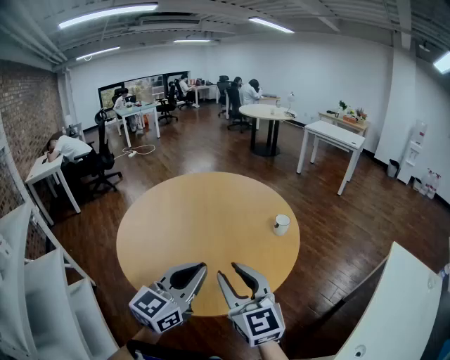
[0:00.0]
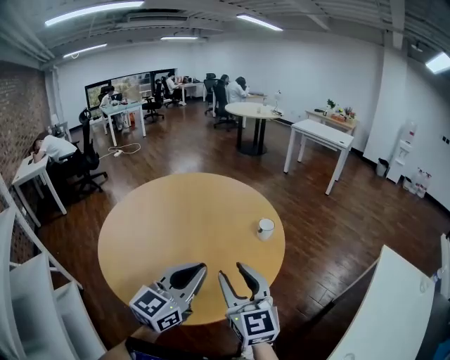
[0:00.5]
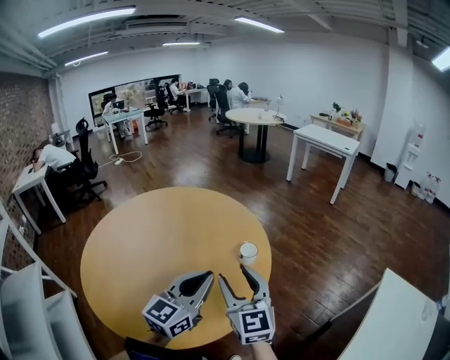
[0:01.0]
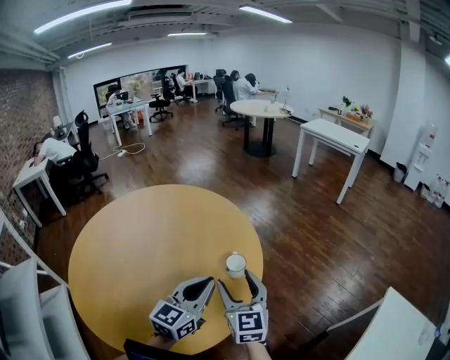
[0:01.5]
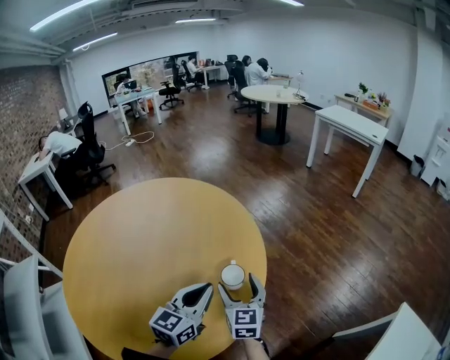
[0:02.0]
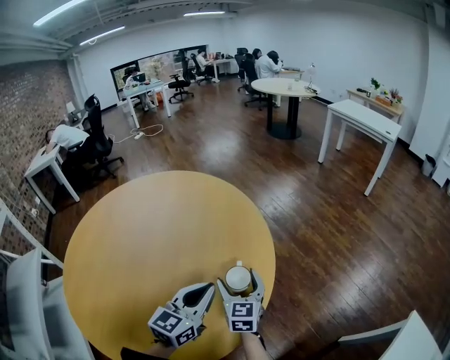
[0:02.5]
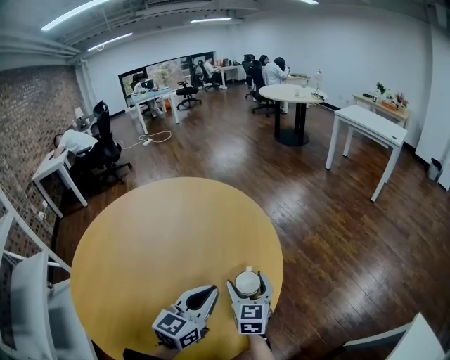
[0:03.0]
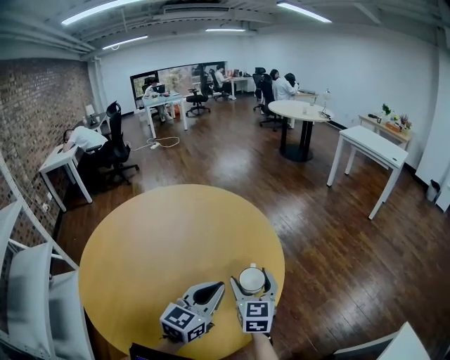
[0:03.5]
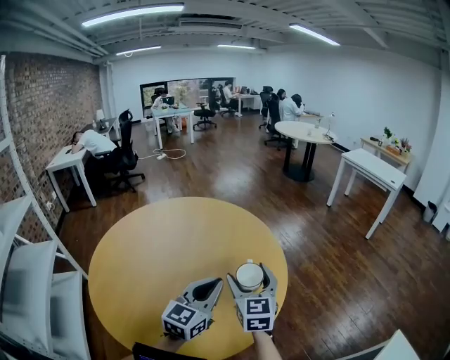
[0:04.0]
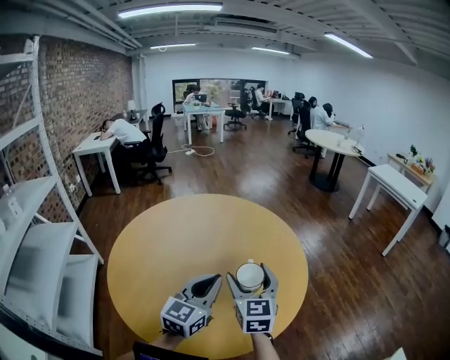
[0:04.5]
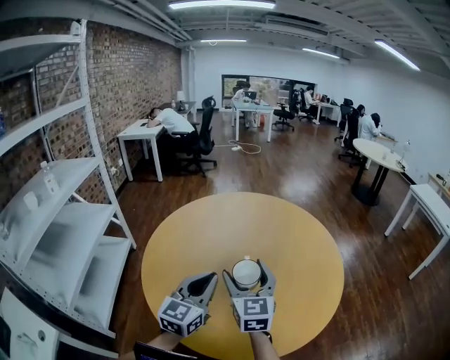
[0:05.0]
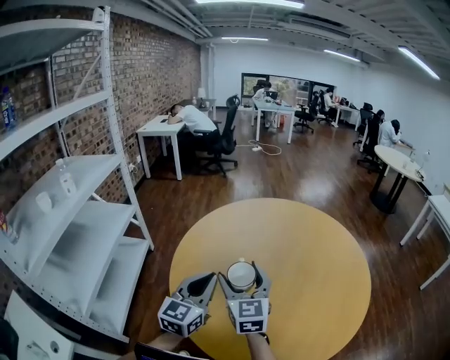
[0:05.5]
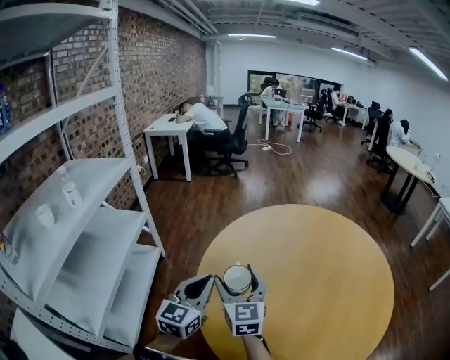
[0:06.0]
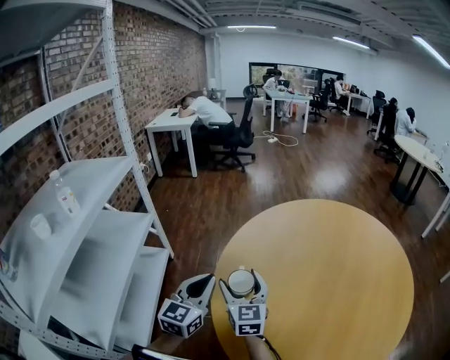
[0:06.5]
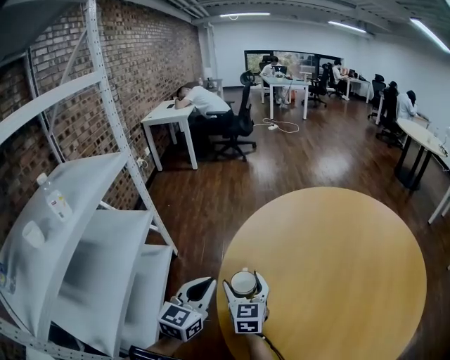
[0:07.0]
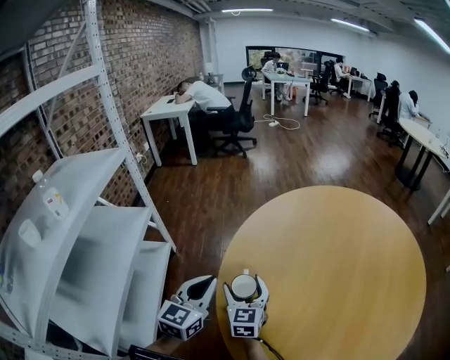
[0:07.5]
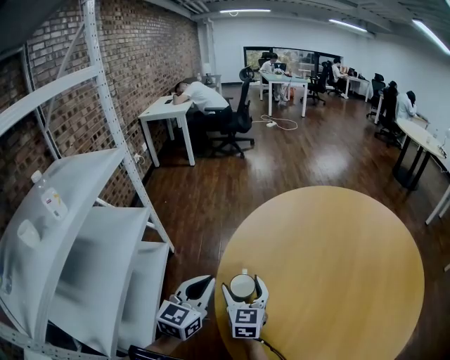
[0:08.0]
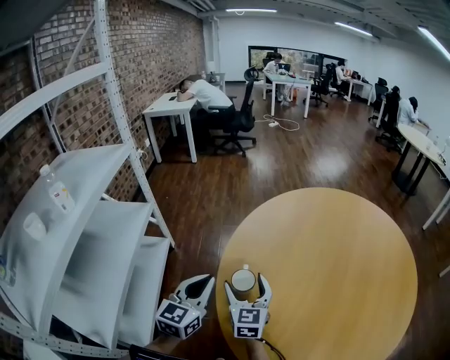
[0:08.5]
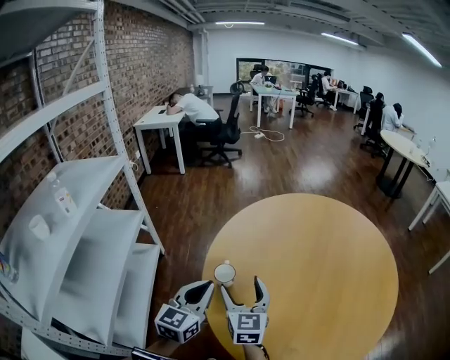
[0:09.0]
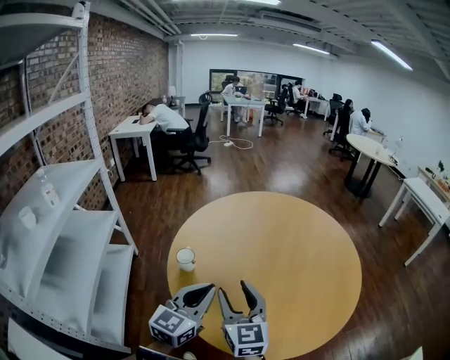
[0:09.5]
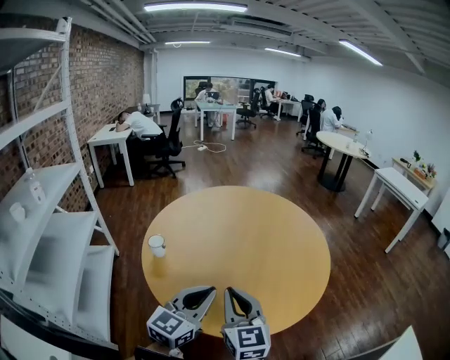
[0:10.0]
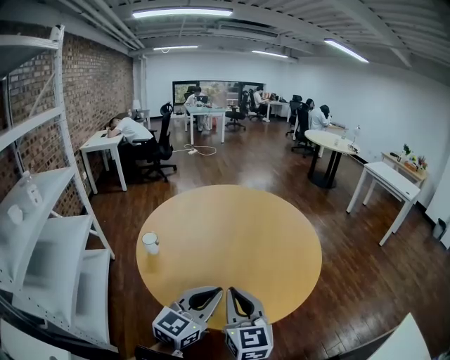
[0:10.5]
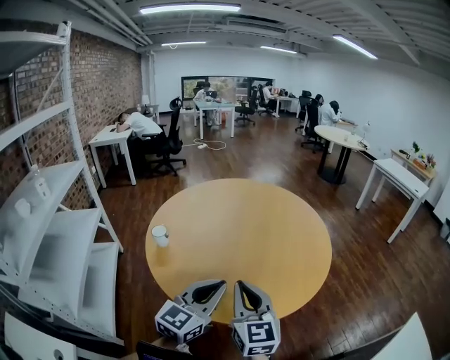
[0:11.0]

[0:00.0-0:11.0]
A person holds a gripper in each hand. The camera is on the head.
0:00.0 to 0:02.0: The right gripper shifts about 50 cm forward, downward and to the right, and opens up. Meanwhile the left gripper shifts approximately 40 cm forward, to the right and downward.
0:02.0 to 0:03.5: The right gripper is displaced upward by some 5 cm.
0:03.5 to 0:05.5: Both grippers are carried roughly 40 cm. The left gripper turns by about 40 degrees. Meanwhile the right gripper swivels some 40 degrees.
0:05.5 to 0:07.5: The left gripper travels to the left, forward and downward by approximately 30 cm. The right gripper shifts approximately 35 cm to the left, downward and forward.
0:07.5 to 0:09.0: The right gripper heads upward, backward and to the right, covering approximately 20 cm, while the left gripper goes some 10 cm backward, upward and to the right.
0:09.0 to 0:11.0: Both grippers move to the right and backward, about 40 cm. The right gripper closes its fingers, while the left gripper swivels roughly 30 degrees.

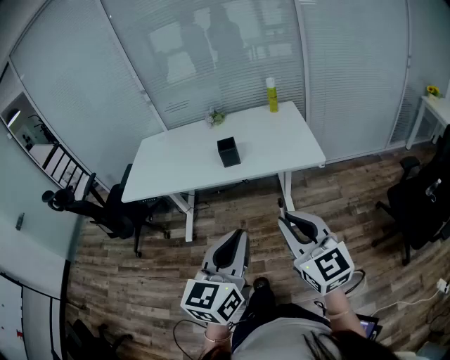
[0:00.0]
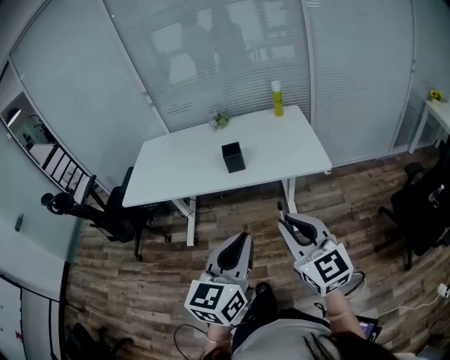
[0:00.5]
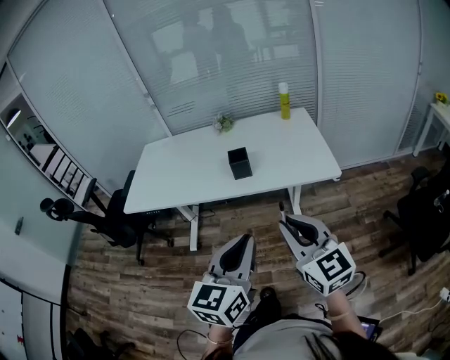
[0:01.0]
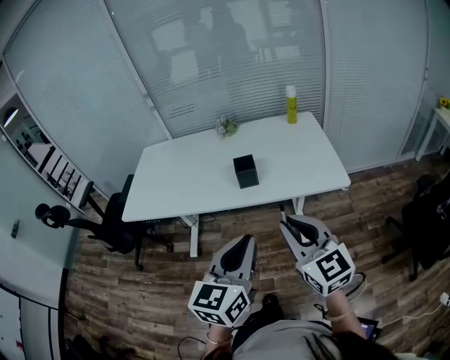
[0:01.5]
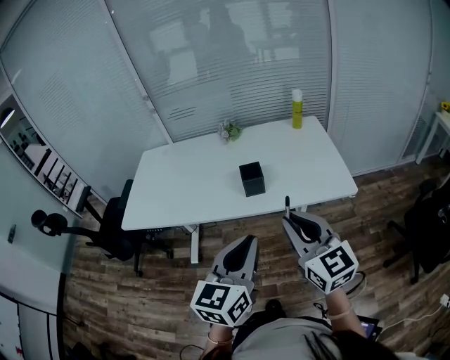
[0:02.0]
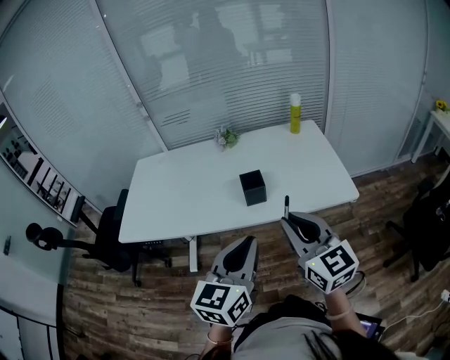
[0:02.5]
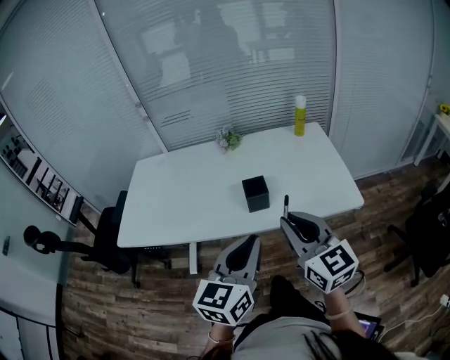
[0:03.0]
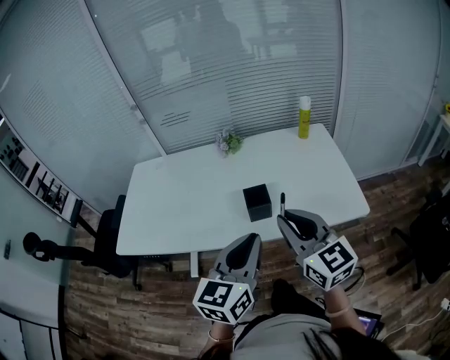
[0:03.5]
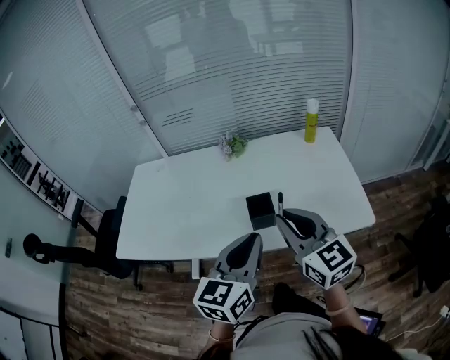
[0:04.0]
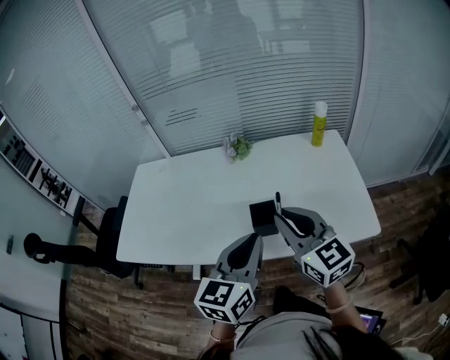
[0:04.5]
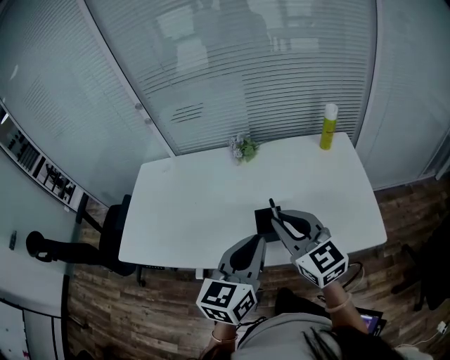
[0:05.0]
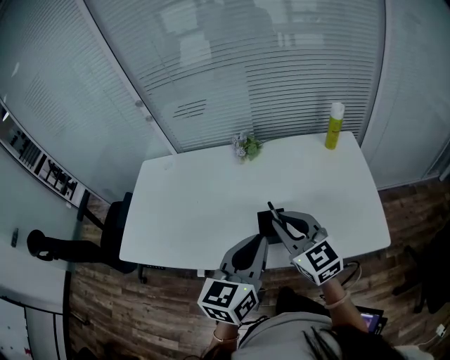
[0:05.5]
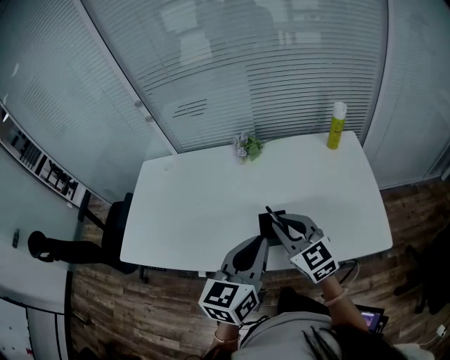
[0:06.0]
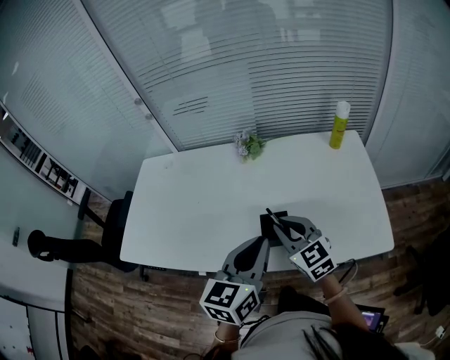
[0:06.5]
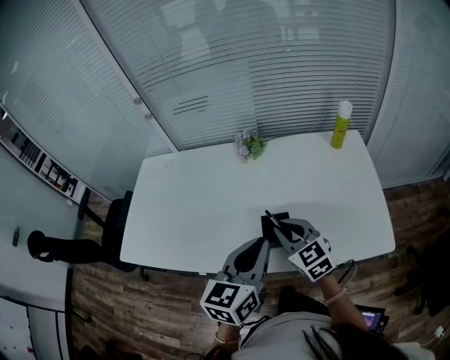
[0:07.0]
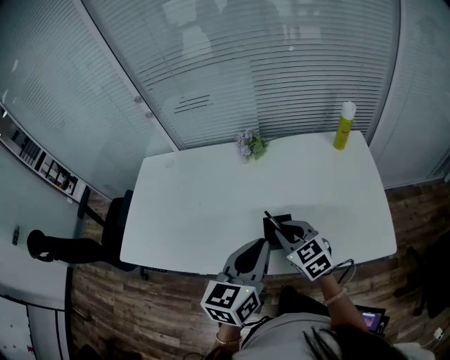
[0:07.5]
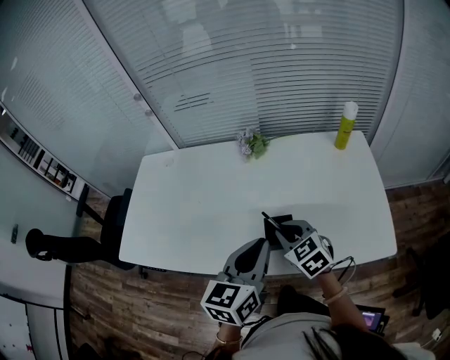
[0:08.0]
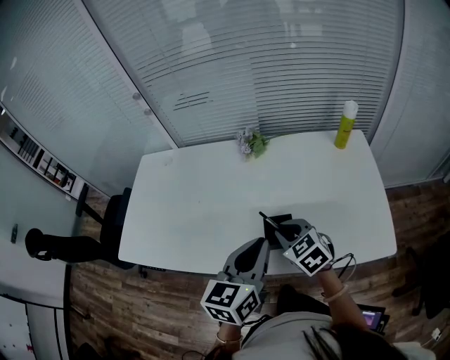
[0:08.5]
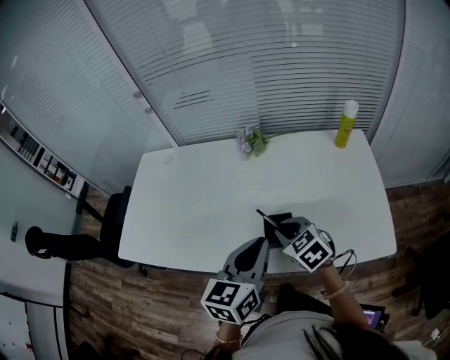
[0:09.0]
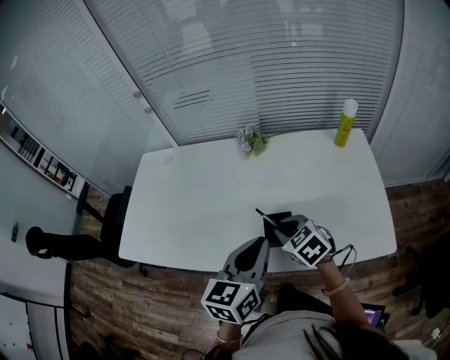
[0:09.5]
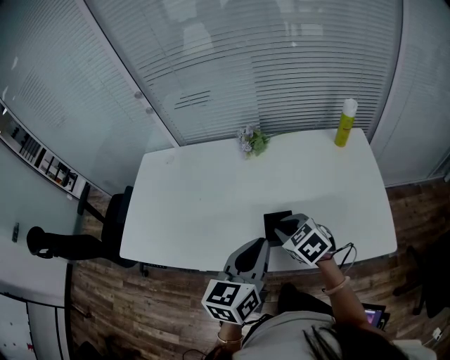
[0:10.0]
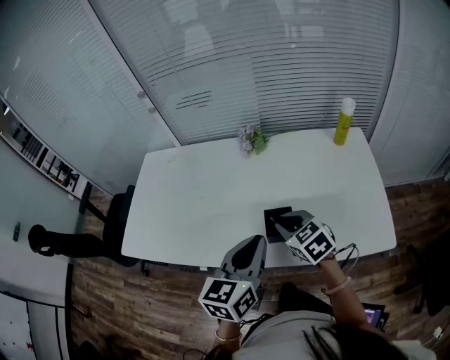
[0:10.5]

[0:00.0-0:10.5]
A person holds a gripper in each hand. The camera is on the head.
0:00.0 to 0:02.0: Both grippers move forward, some 20 cm.
0:02.0 to 0:04.0: Both grippers move forward, approximately 20 cm.
0:04.0 to 0:06.5: The right gripper goes roughly 20 cm downward and forward, while the left gripper shifts roughly 10 cm forward.
0:06.5 to 0:08.5: The right gripper moves downward, about 5 cm, and turns by roughly 20 degrees.
0:08.5 to 0:10.5: The grippers move only a little.

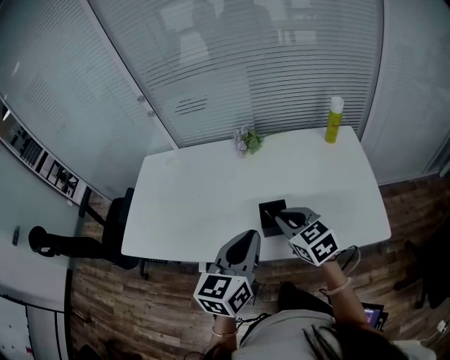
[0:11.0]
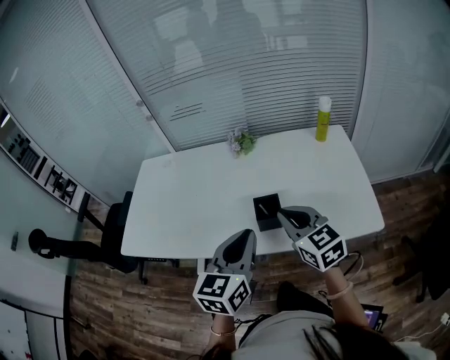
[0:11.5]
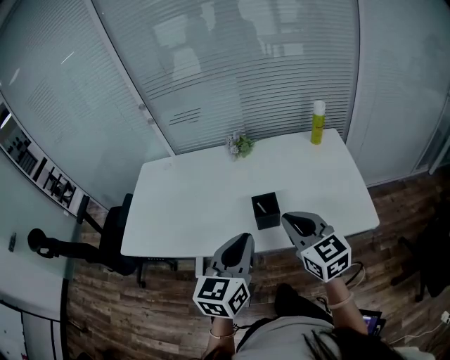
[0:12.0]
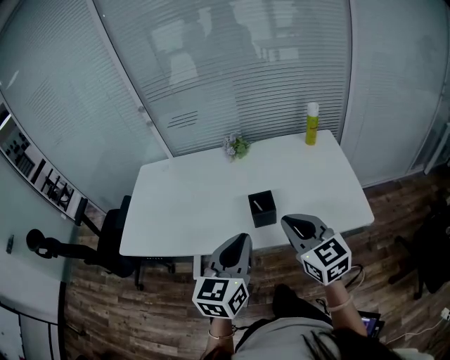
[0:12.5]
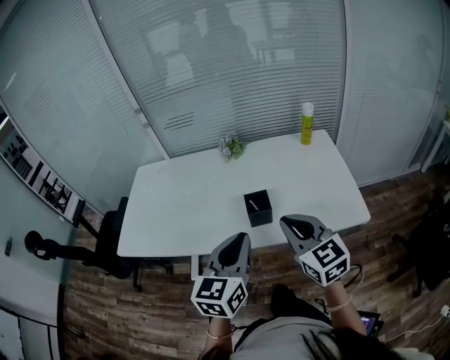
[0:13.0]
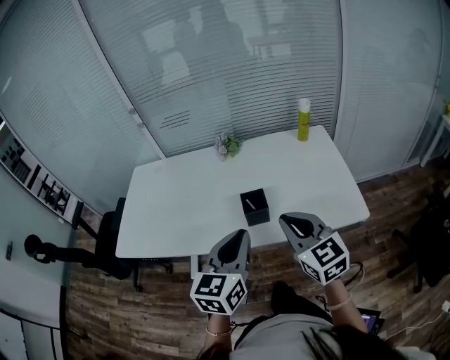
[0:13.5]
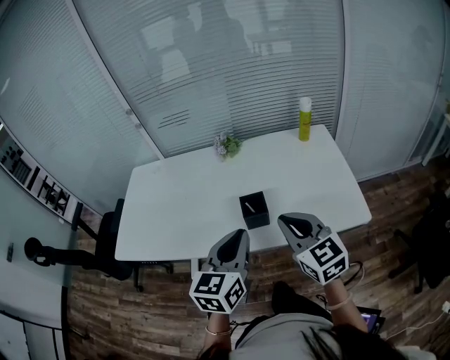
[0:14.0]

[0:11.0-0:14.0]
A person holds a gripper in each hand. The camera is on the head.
0:11.0 to 0:12.5: The right gripper moves backward and upward, some 15 cm. The left gripper moves backward, some 10 cm.
0:12.5 to 0:14.0: The grippers make only small movements.

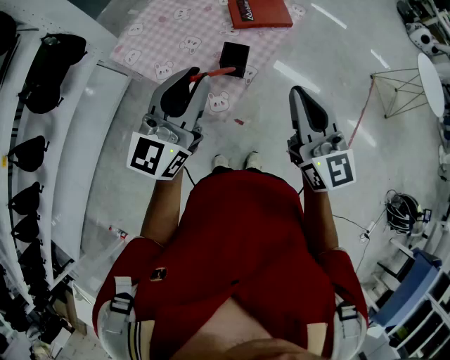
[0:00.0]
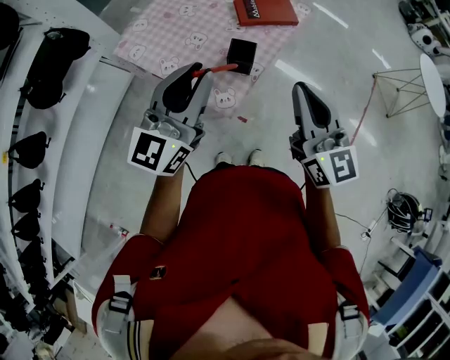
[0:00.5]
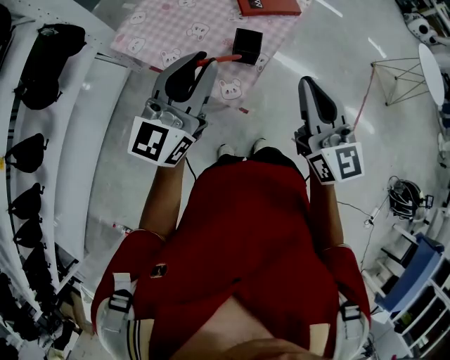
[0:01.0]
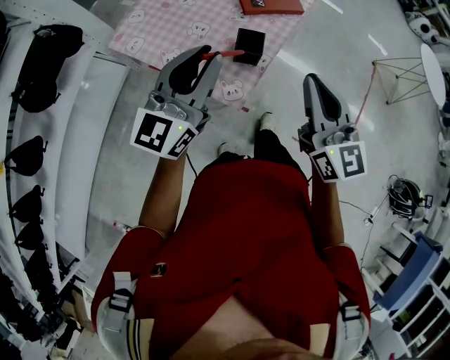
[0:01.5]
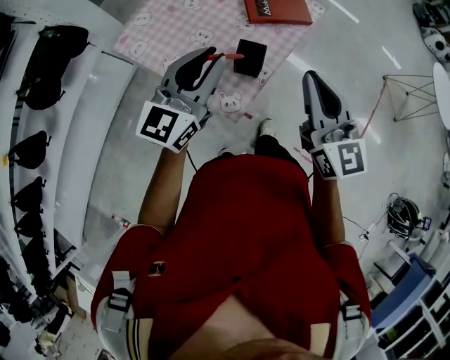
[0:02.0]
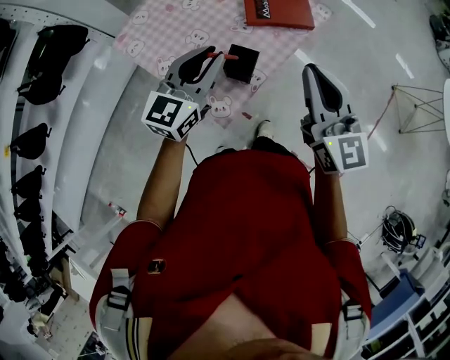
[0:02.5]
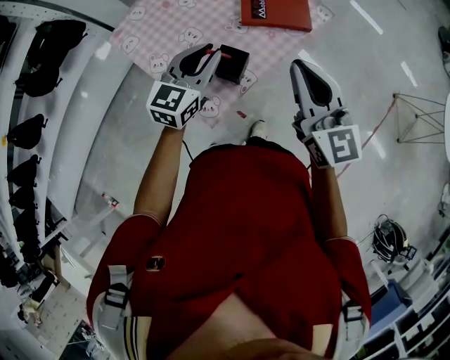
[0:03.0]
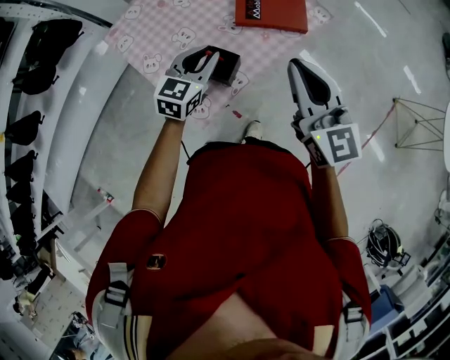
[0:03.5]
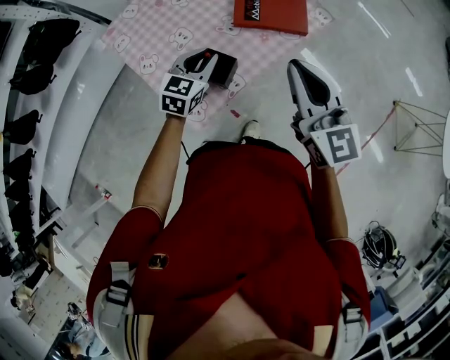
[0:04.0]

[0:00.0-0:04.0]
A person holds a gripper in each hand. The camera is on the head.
0:00.0 to 0:02.0: The left gripper shifts about 10 cm forward and downward; the right gripper goes approximately 10 cm forward.
0:02.0 to 0:04.0: The right gripper travels forward and to the right by approximately 15 cm; the left gripper shifts about 25 cm downward, forward and to the right, and points its fingers approximately 30 degrees further downward.
